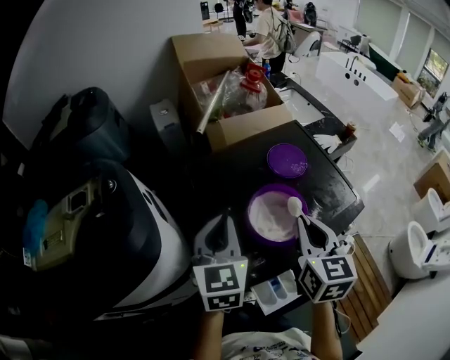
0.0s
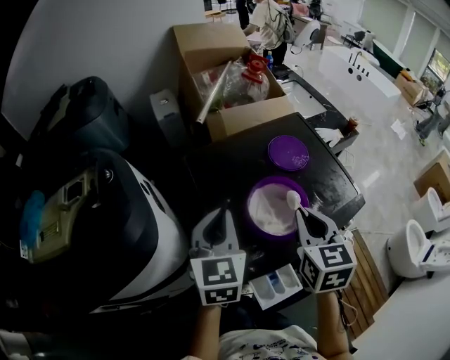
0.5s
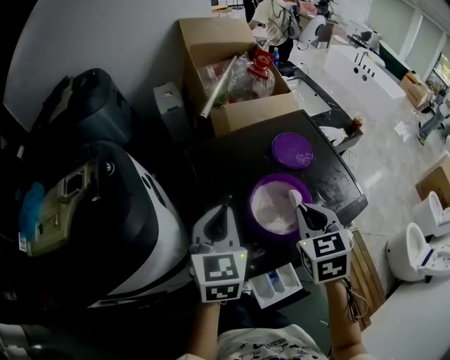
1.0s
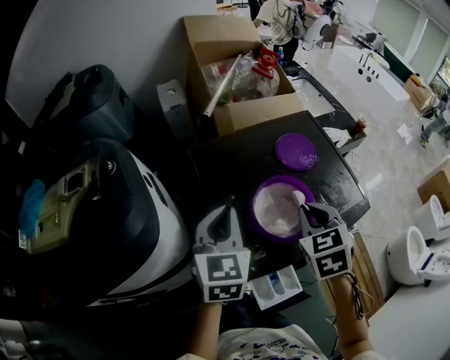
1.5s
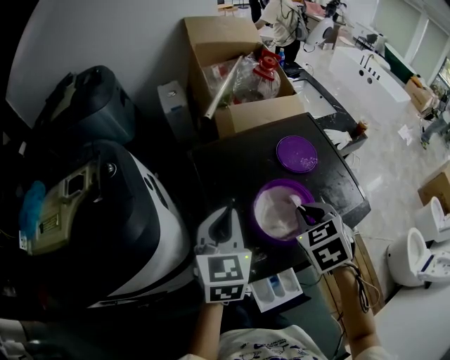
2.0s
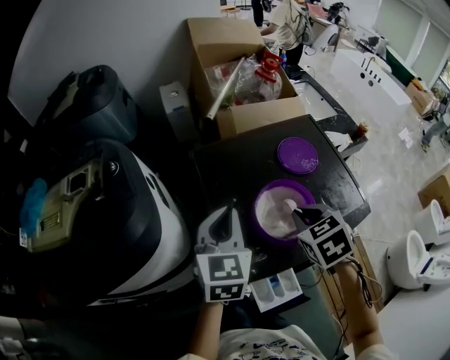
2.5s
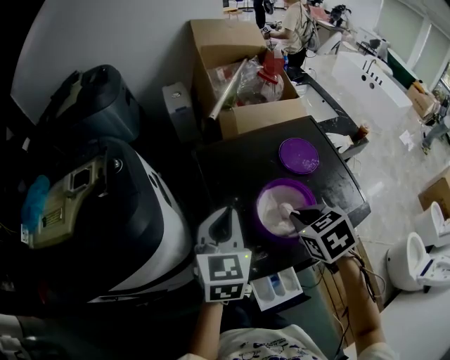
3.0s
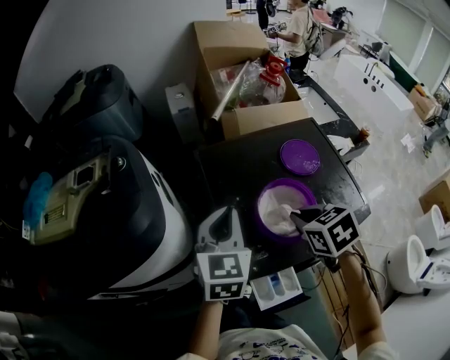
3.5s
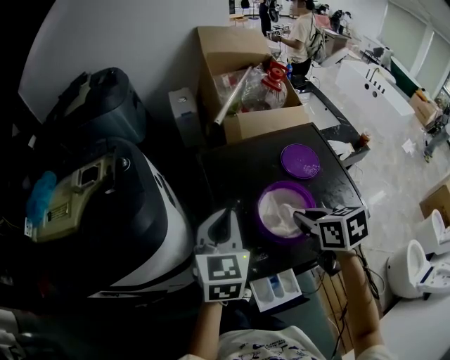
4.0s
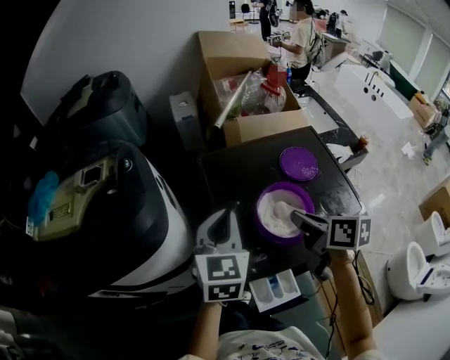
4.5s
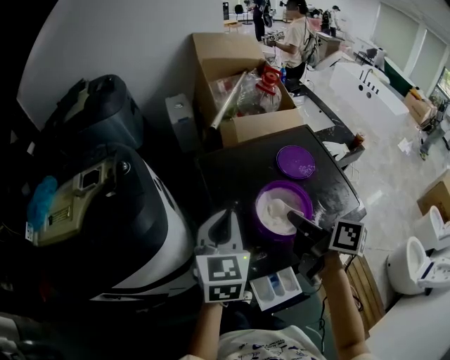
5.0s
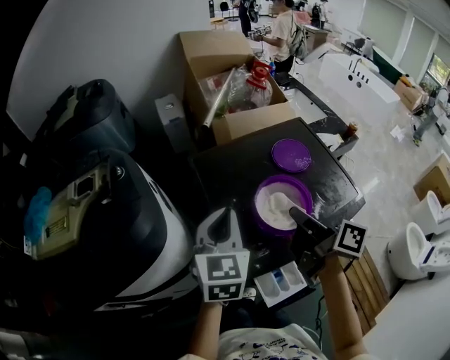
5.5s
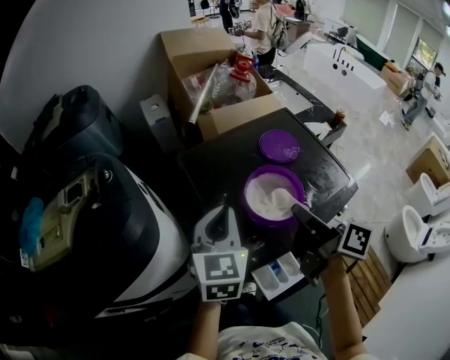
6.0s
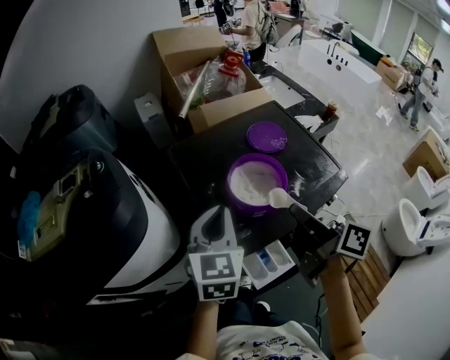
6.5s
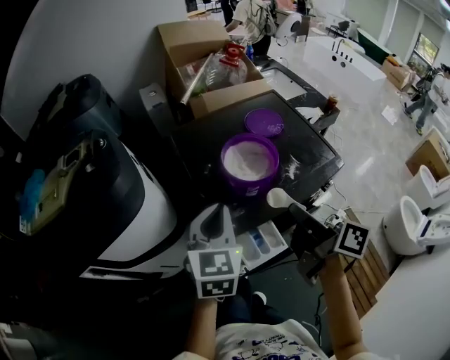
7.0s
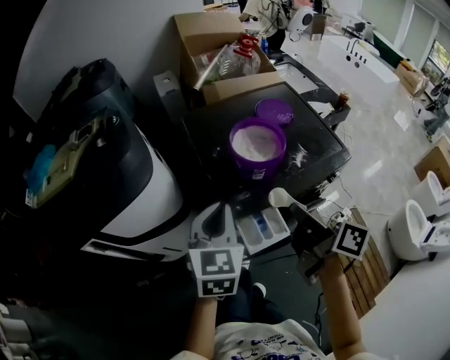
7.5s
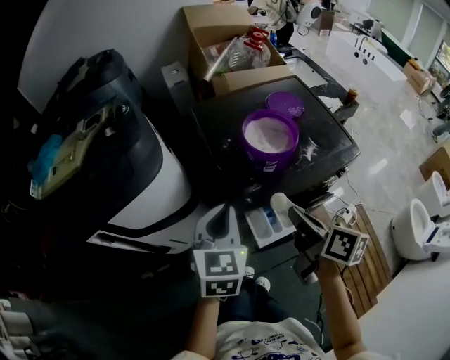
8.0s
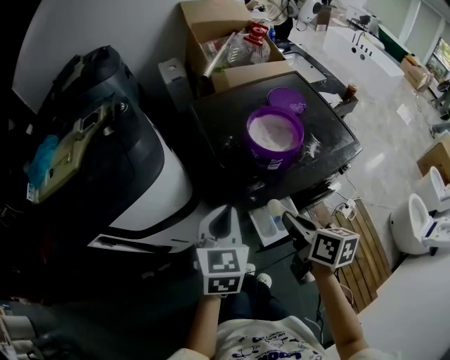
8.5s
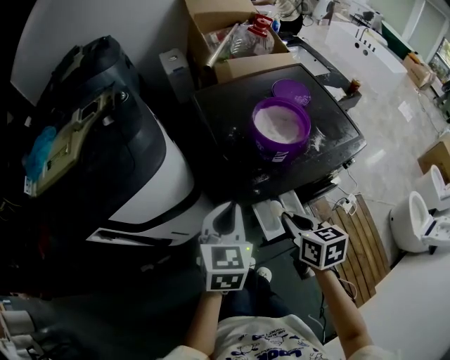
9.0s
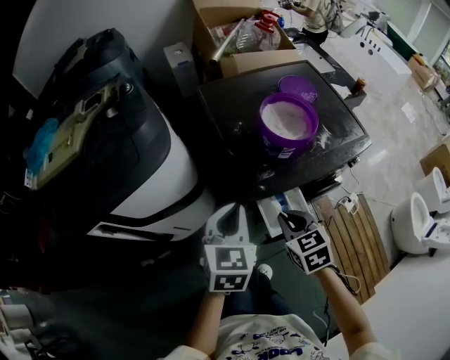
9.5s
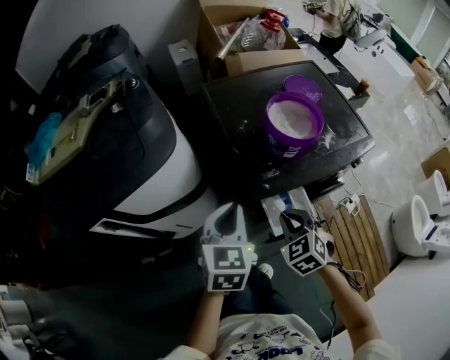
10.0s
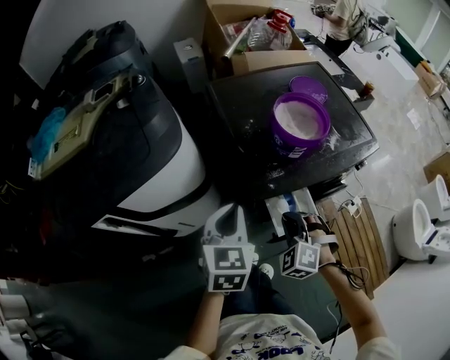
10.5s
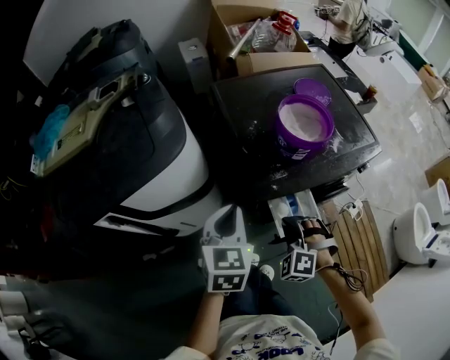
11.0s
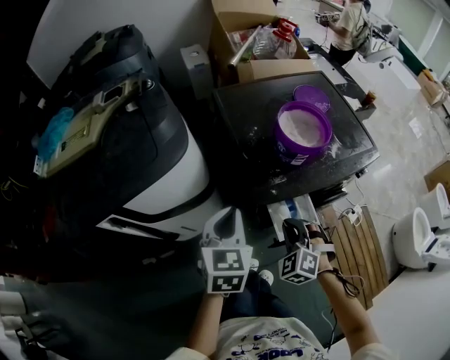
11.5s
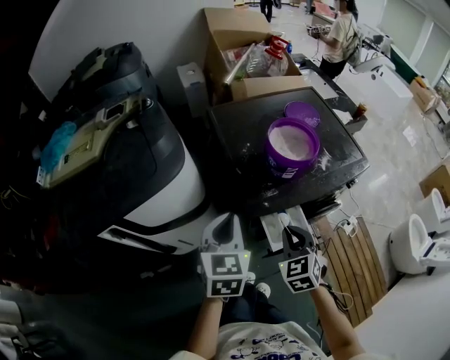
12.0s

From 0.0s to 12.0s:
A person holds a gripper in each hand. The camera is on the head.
From 0.0s to 2.0s: The right gripper moves downward, about 5 cm, and changes its angle by about 40 degrees.
From 2.0s to 4.0s: The right gripper swivels about 30 degrees.
From 4.0s to 6.0s: The right gripper heads backward, covering about 5 cm, and tips its fingers upward by approximately 40 degrees.
From 6.0s to 8.0s: The right gripper shifts approximately 15 cm backward and downward, while the left gripper heads backward, covering approximately 15 cm.
From 8.0s to 10.0s: The left gripper is displaced downward by roughly 5 cm. Meanwhile the right gripper heads downward and to the left, covering about 15 cm, and rolls counterclockwise, seen from behind, by about 80 degrees.

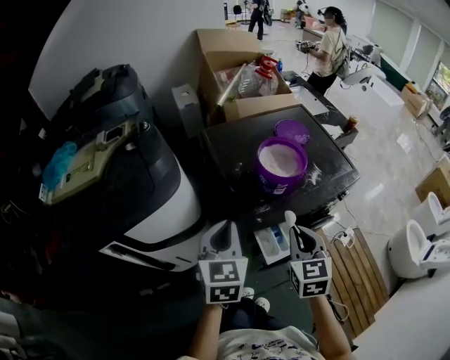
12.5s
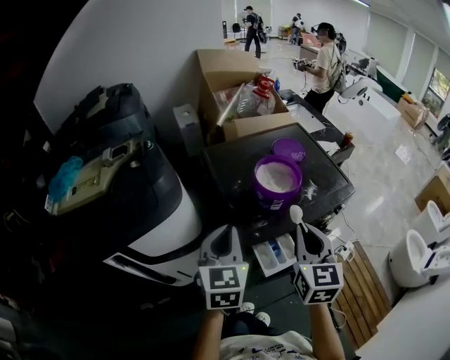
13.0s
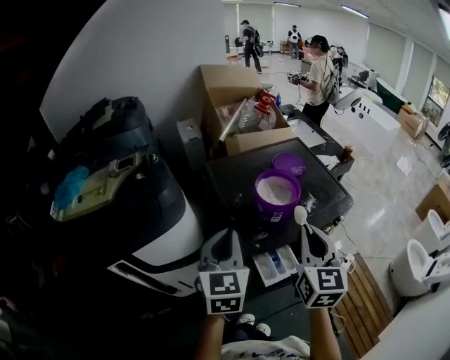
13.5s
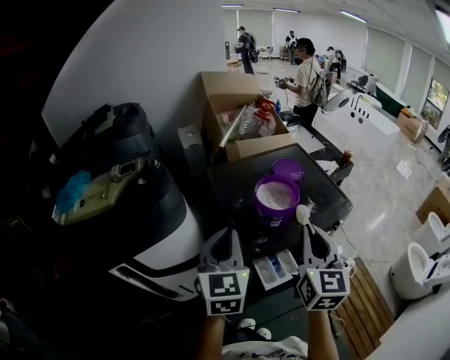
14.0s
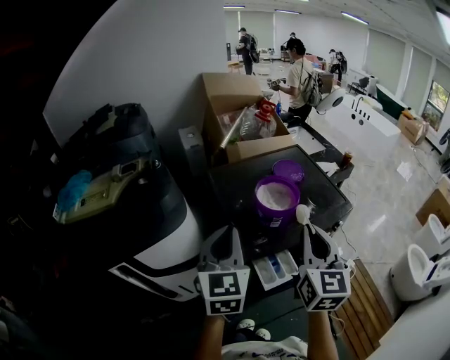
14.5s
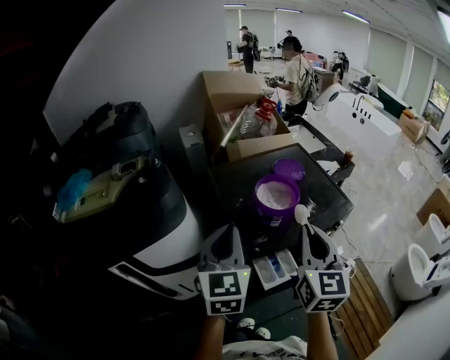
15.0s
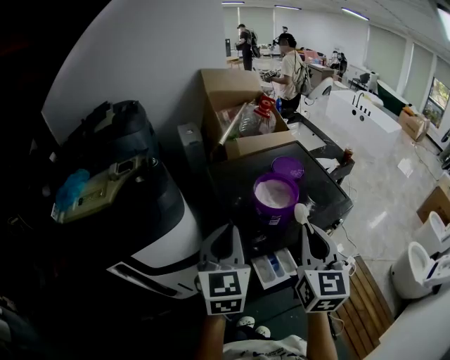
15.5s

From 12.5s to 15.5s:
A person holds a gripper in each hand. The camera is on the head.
From 12.5s to 14.0s: The right gripper travels upward by roughly 15 cm, and swivels about 20 degrees; the left gripper goes approximately 10 cm upward.
From 14.0s to 15.5s: The grippers make only small movements.

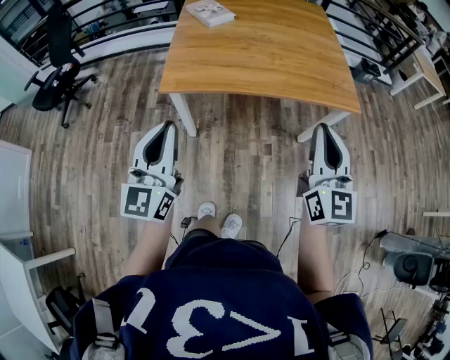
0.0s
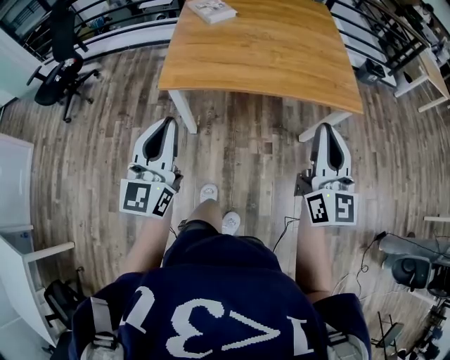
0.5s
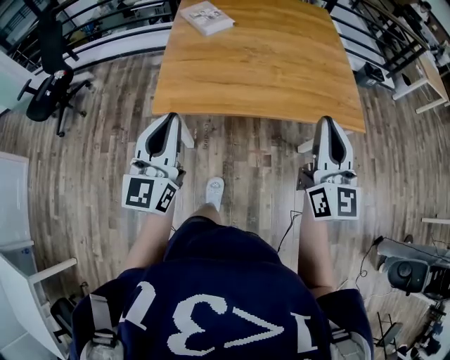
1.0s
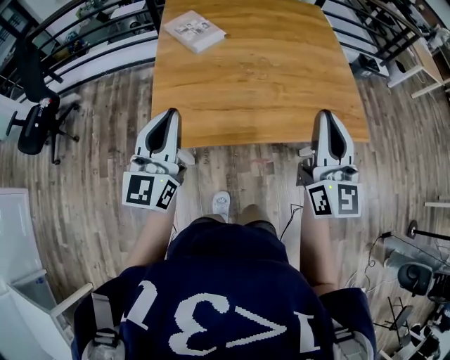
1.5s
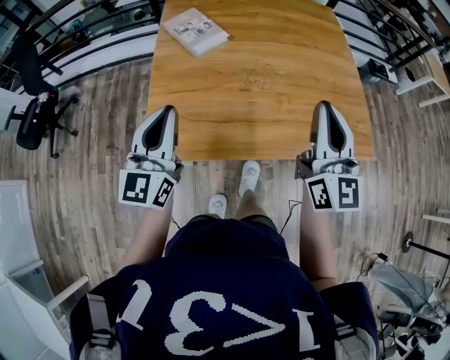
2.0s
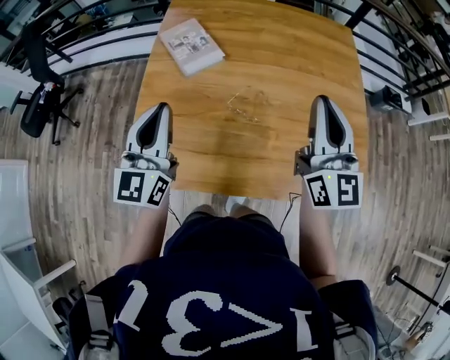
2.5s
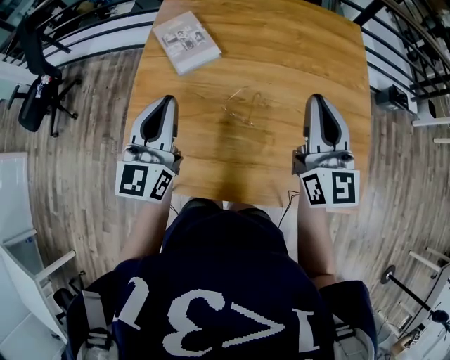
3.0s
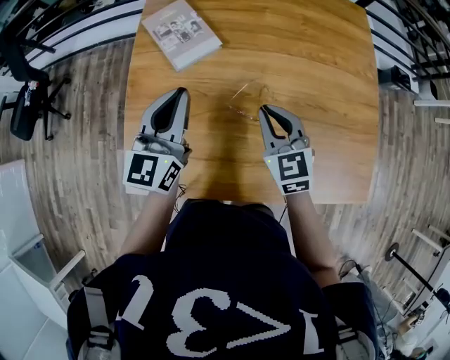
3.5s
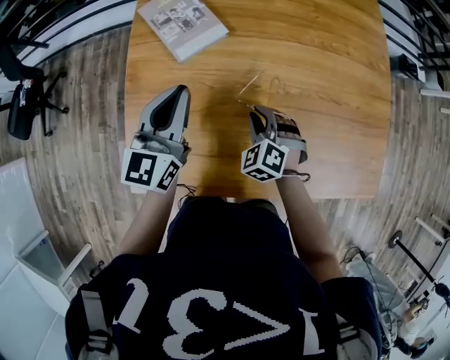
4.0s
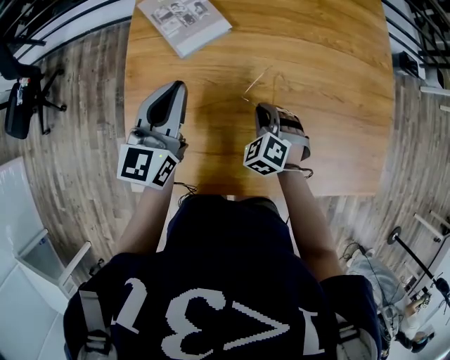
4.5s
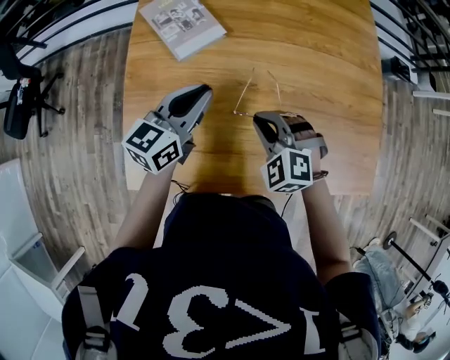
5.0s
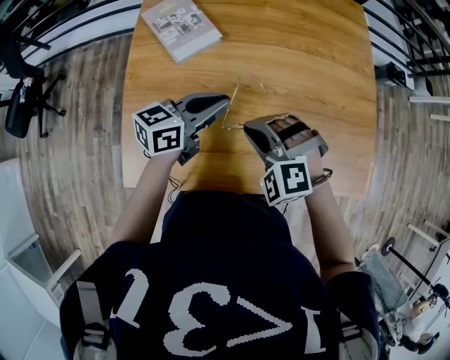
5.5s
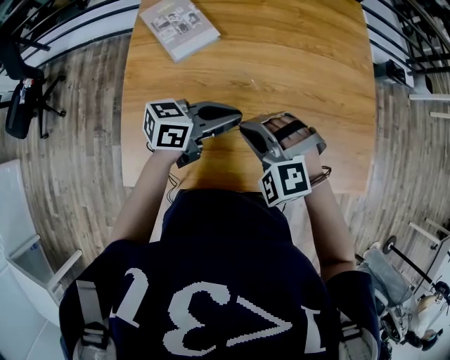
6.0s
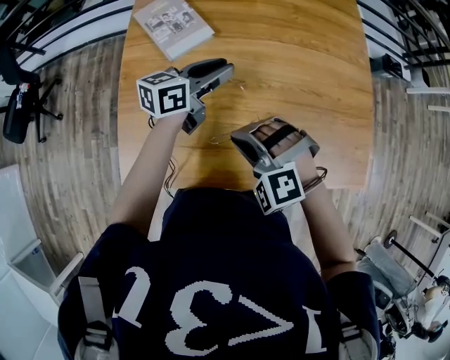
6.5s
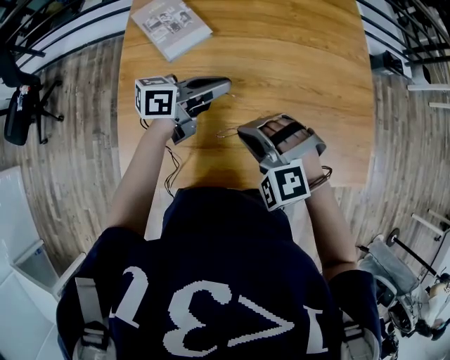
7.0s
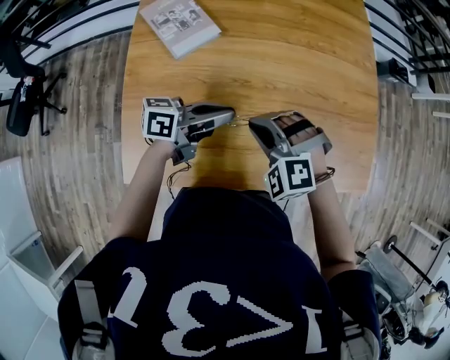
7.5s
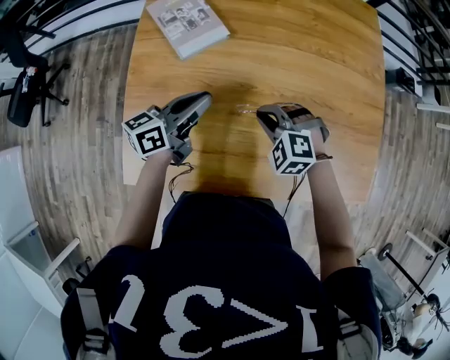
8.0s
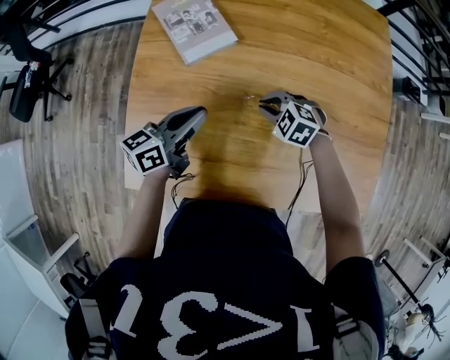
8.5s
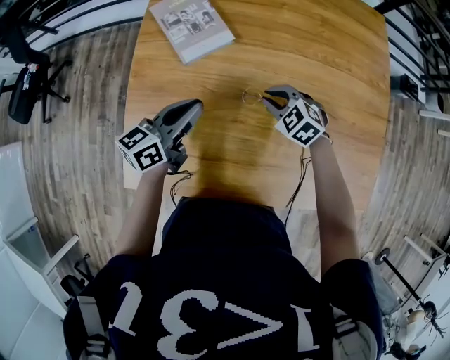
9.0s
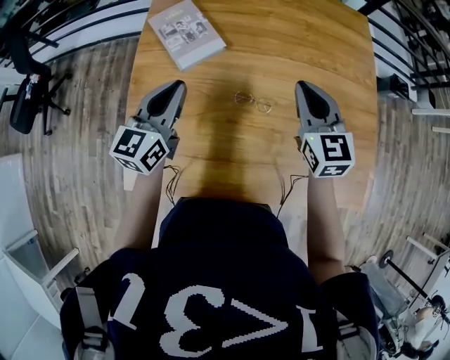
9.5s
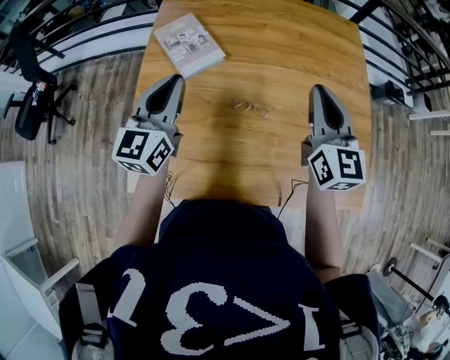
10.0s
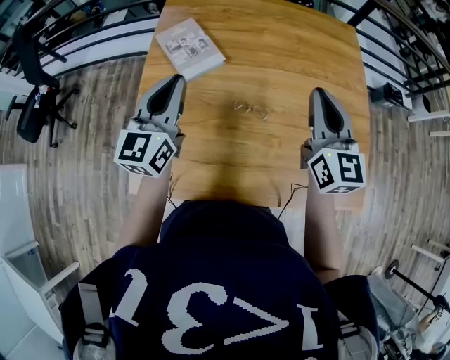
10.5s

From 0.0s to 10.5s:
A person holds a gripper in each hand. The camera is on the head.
From 0.0s to 2.0s: Both grippers move forward, about 35 cm.
From 2.0s to 4.0s: The right gripper is displaced downward and forward by about 40 cm, and angles its fingers downward, by about 60 degrees. The left gripper goes approximately 25 cm forward.
From 4.0s to 6.5s: The left gripper travels to the right and forward by roughly 10 cm, and turns by about 40 degrees. Meanwhile the right gripper is displaced upward and backward by some 15 cm, and changes its angle by some 40 degrees.
From 6.5s to 8.5s: The left gripper ends up approximately 10 cm from where it was, while the right gripper shifts by roughly 20 cm, and turns by some 30 degrees.
From 8.5s to 10.5s: The left gripper heads upward, covering about 15 cm, and rotates about 50 degrees. Meanwhile the right gripper is displaced upward by about 30 cm, and points its fingers some 60 degrees further upward.

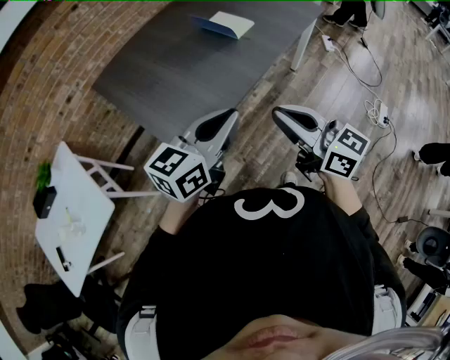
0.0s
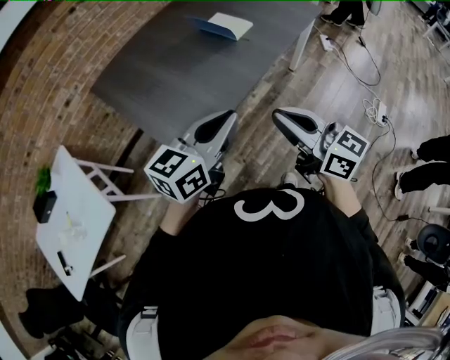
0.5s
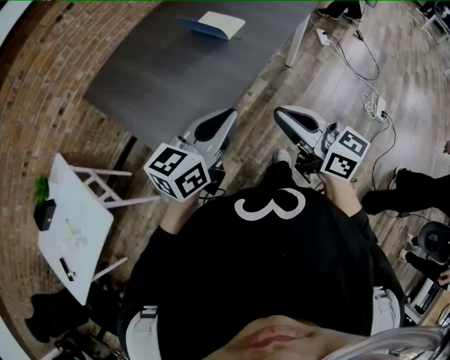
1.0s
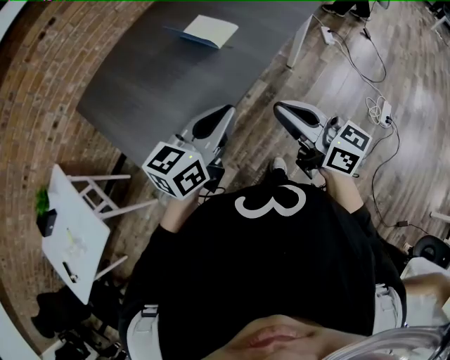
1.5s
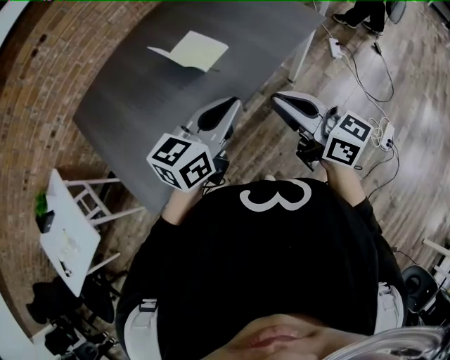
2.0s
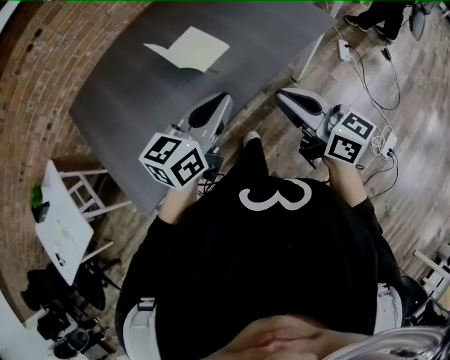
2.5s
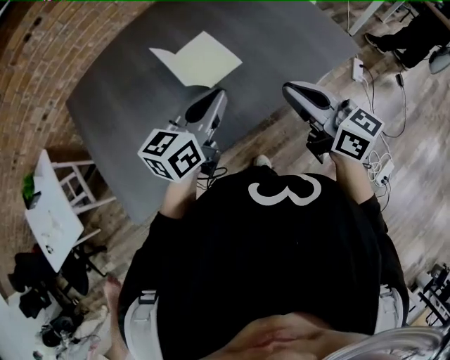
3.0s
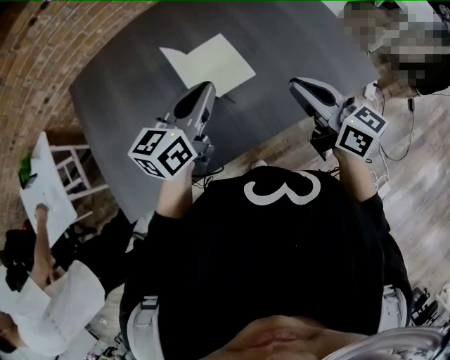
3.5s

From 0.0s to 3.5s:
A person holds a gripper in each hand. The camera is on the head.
From 0.0s to 2.0s: The grippers both shift forward and to the right by about 30 cm.
From 2.0s to 3.5s: Both grippers travel together forward, some 25 cm. The left gripper rotates some 30 degrees.
